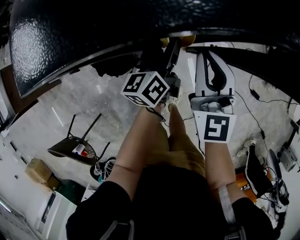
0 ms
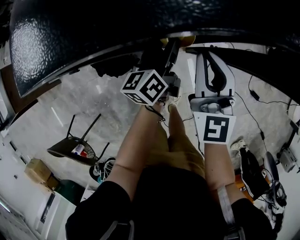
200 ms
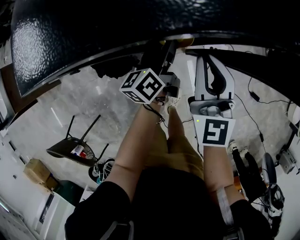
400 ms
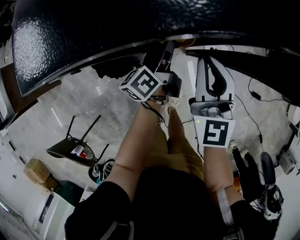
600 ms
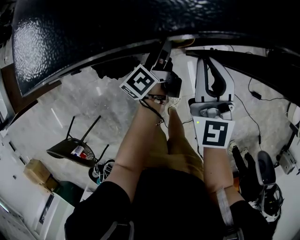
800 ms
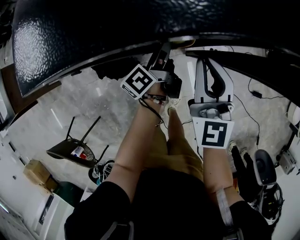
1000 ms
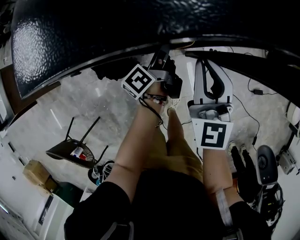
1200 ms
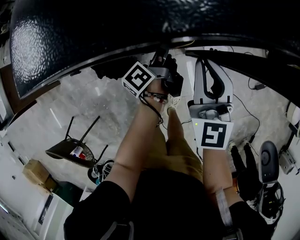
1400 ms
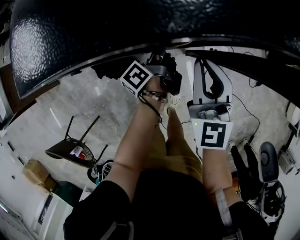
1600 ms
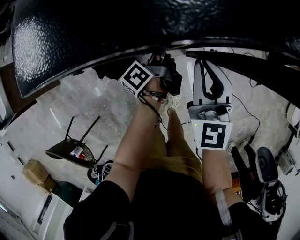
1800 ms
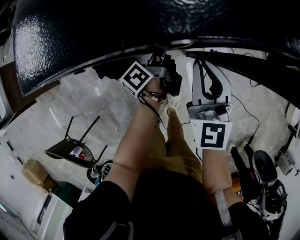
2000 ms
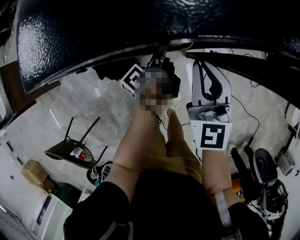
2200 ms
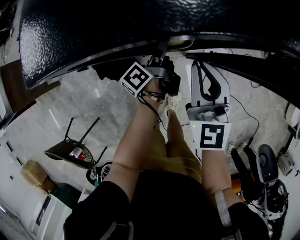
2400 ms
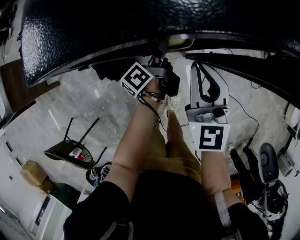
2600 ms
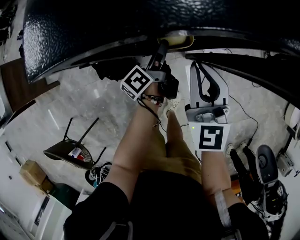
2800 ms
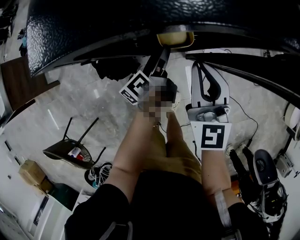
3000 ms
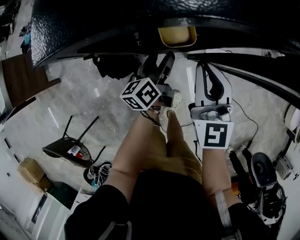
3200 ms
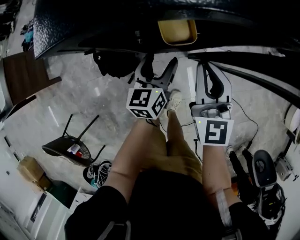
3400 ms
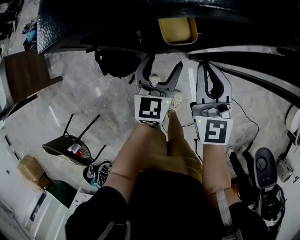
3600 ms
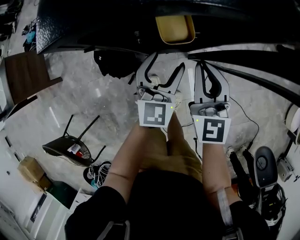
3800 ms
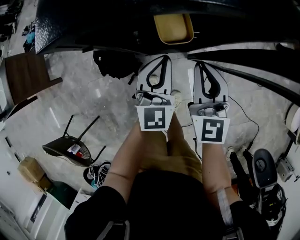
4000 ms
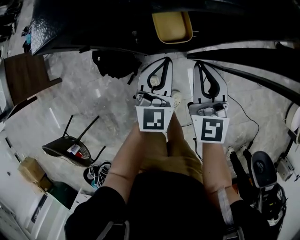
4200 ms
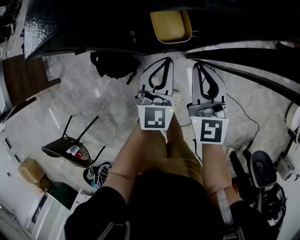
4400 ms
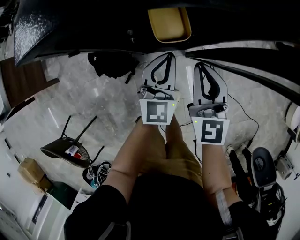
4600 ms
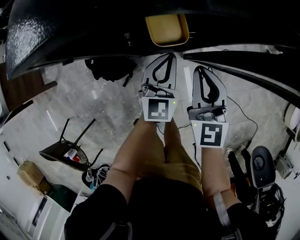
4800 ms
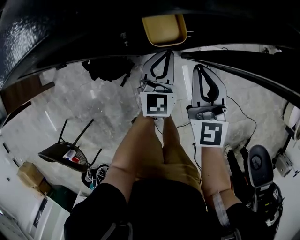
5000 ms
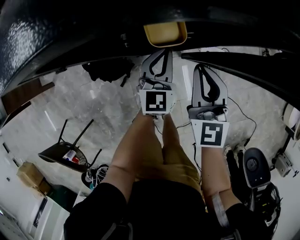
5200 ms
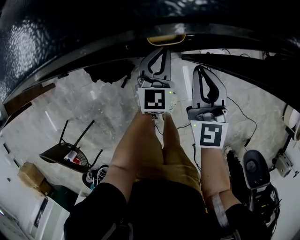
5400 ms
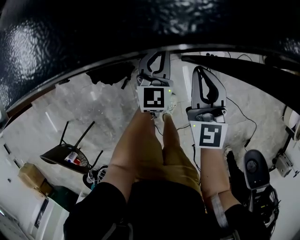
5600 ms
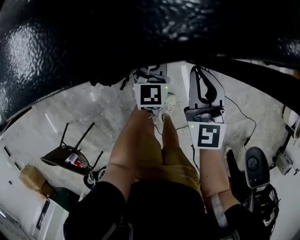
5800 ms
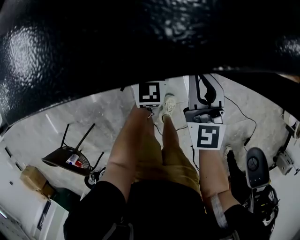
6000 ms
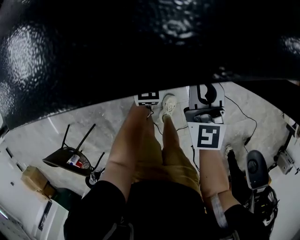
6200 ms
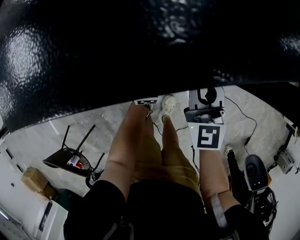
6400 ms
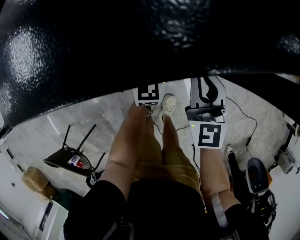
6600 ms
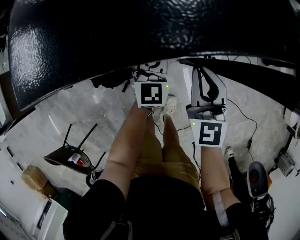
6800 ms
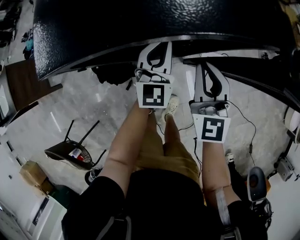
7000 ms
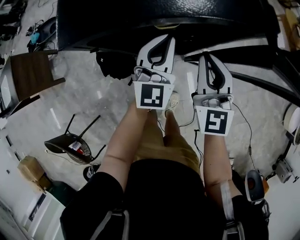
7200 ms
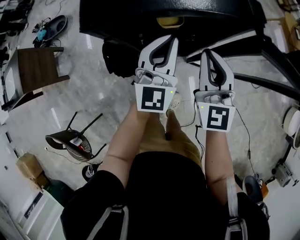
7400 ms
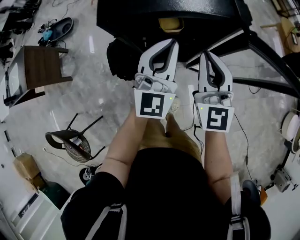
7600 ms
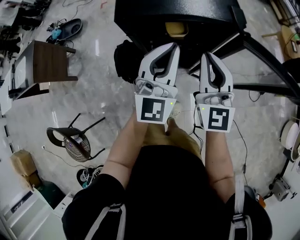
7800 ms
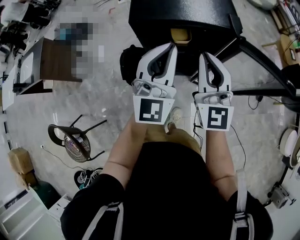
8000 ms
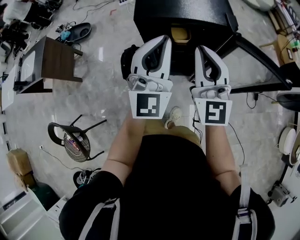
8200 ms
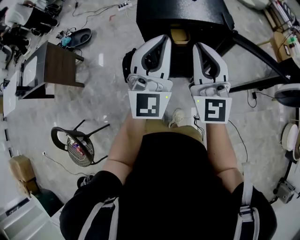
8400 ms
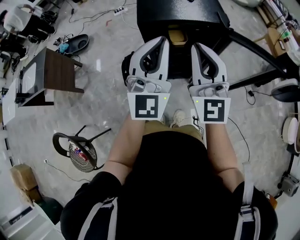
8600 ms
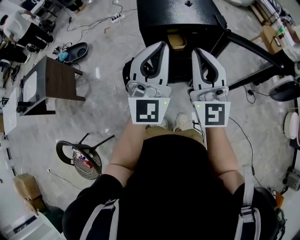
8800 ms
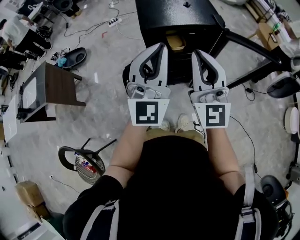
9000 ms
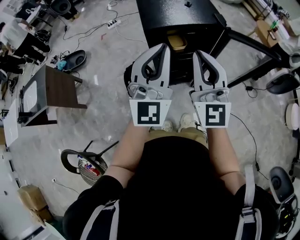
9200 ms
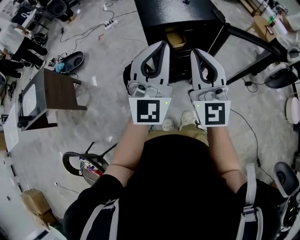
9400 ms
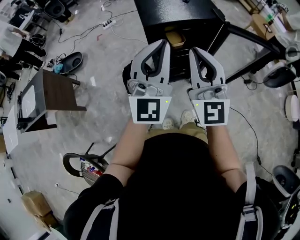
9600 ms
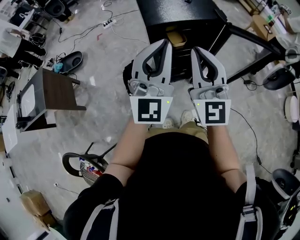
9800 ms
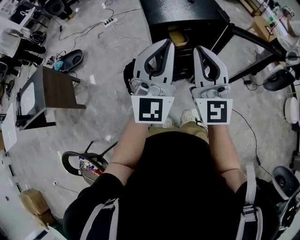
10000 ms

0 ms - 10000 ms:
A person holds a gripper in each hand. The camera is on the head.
0 ms - 1400 ms: The left gripper heads downward, covering approximately 5 cm, and twists roughly 40 degrees counterclockwise, seen from behind.
1400 ms - 2800 ms: The grippers make only small movements.
2800 ms - 4200 ms: The left gripper goes about 15 cm upward and backward, twists some 90 degrees clockwise, seen from behind, and closes its fingers.
4200 ms - 5800 ms: The right gripper shifts by approximately 5 cm; the left gripper heads forward and downward, covering some 15 cm.
5800 ms - 7200 ms: The right gripper shifts approximately 10 cm upward; the left gripper is displaced upward by about 20 cm.
7200 ms - 8600 ms: Both grippers move upward and backward, about 40 cm. The right gripper changes its angle by some 20 degrees. The left gripper changes its angle by approximately 20 degrees.
8600 ms - 10000 ms: The two grippers go approximately 5 cm to the left.

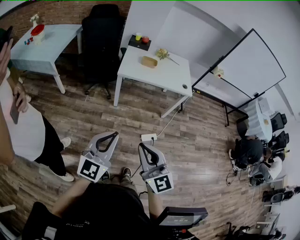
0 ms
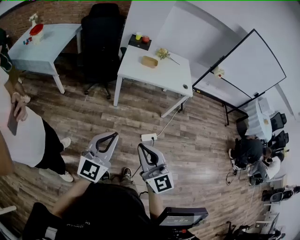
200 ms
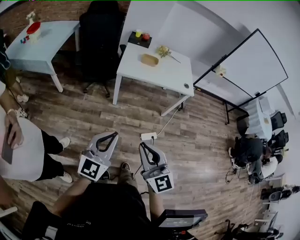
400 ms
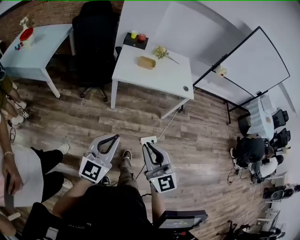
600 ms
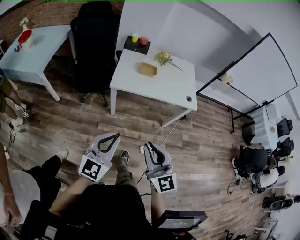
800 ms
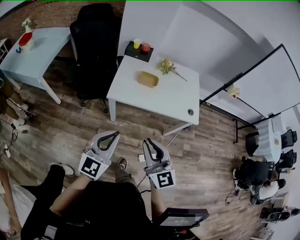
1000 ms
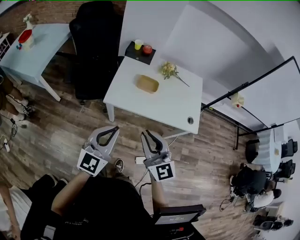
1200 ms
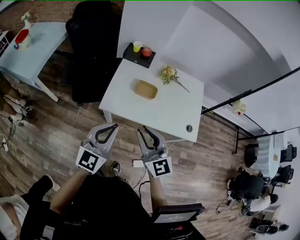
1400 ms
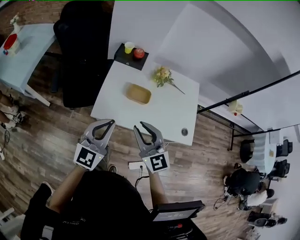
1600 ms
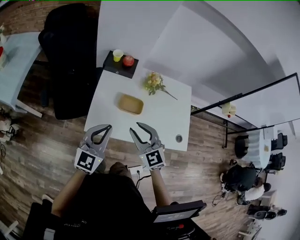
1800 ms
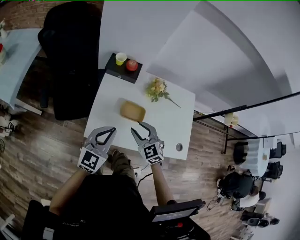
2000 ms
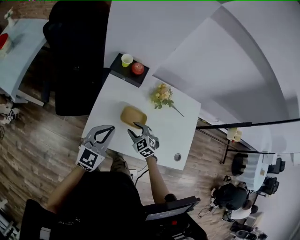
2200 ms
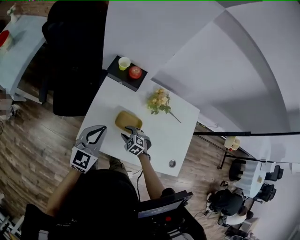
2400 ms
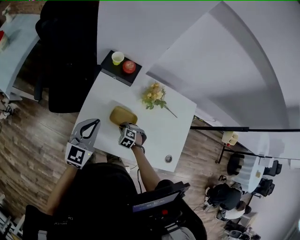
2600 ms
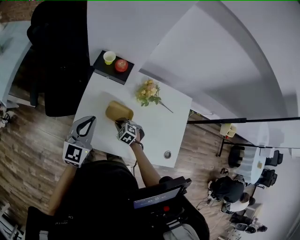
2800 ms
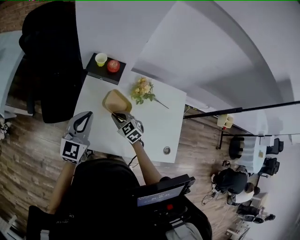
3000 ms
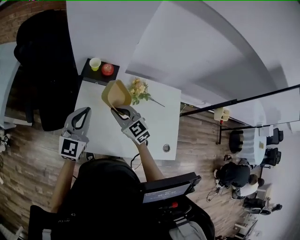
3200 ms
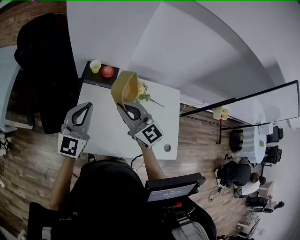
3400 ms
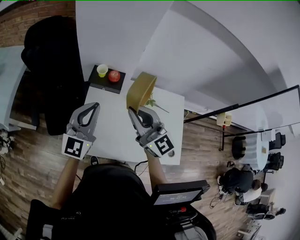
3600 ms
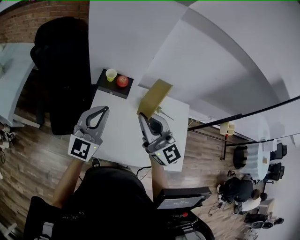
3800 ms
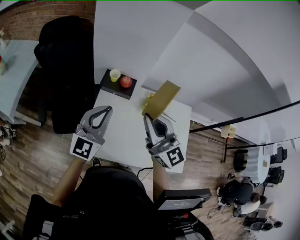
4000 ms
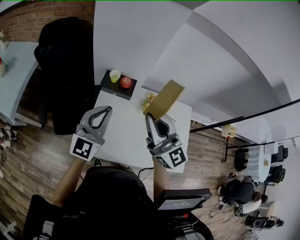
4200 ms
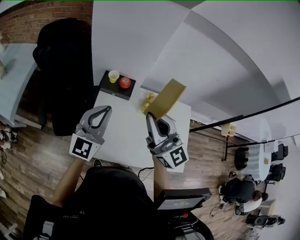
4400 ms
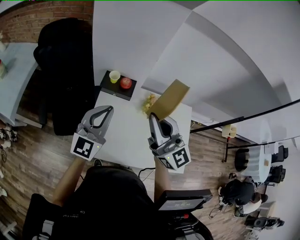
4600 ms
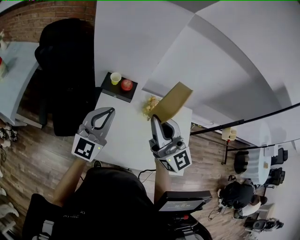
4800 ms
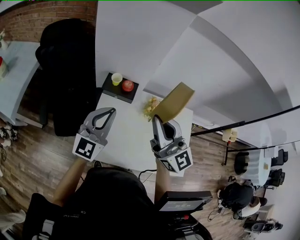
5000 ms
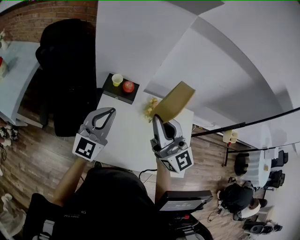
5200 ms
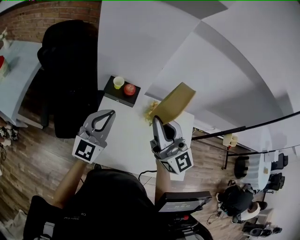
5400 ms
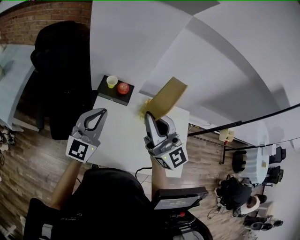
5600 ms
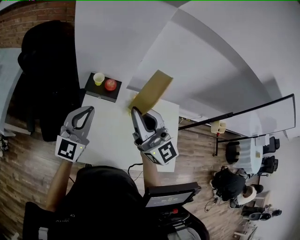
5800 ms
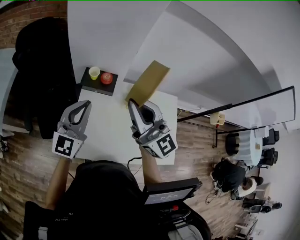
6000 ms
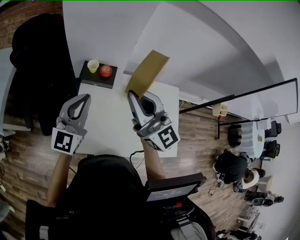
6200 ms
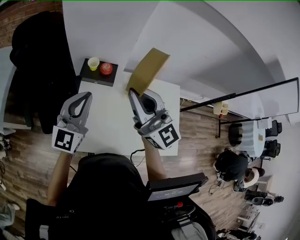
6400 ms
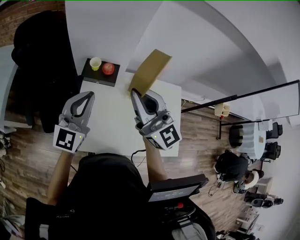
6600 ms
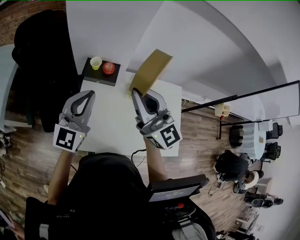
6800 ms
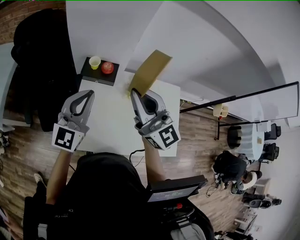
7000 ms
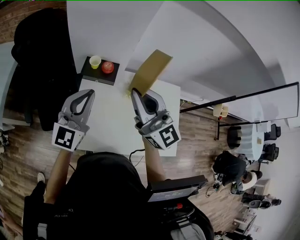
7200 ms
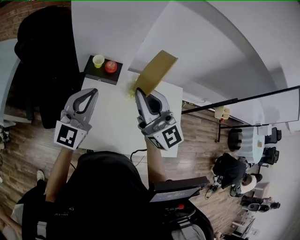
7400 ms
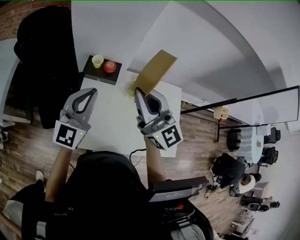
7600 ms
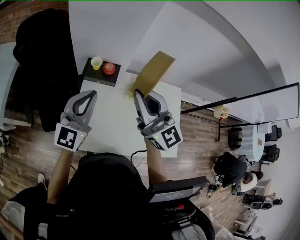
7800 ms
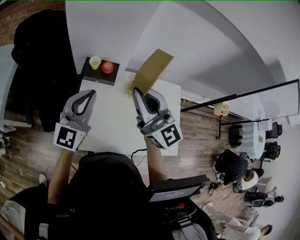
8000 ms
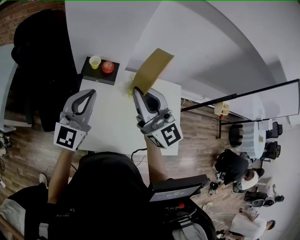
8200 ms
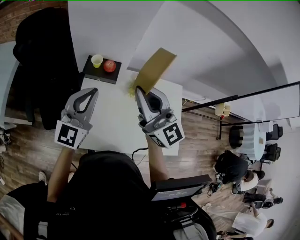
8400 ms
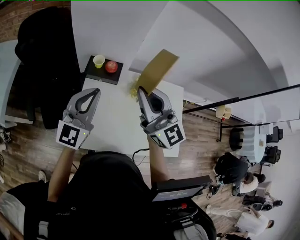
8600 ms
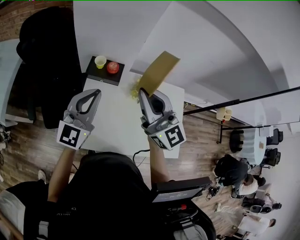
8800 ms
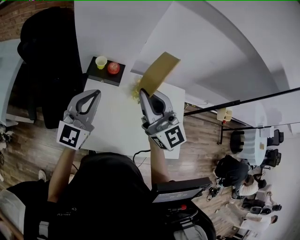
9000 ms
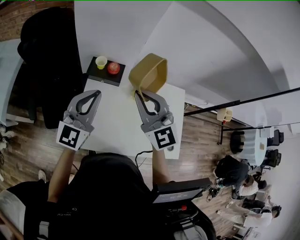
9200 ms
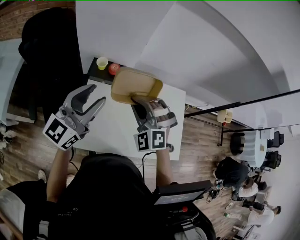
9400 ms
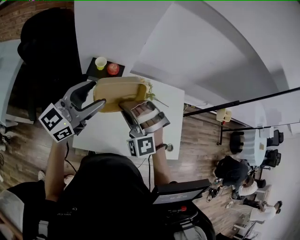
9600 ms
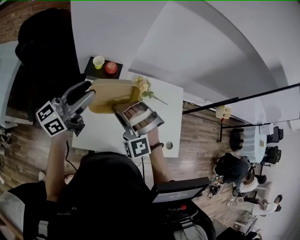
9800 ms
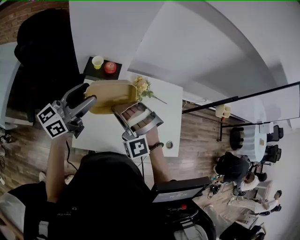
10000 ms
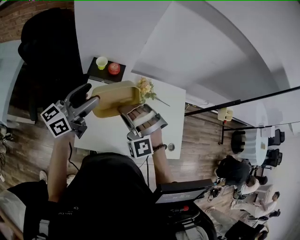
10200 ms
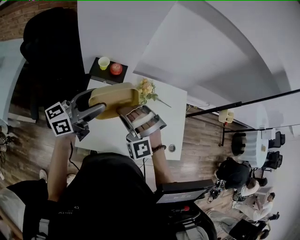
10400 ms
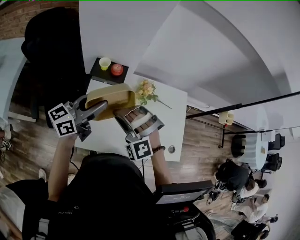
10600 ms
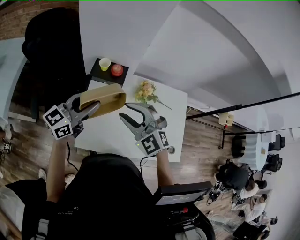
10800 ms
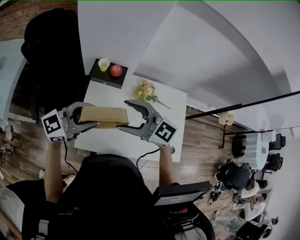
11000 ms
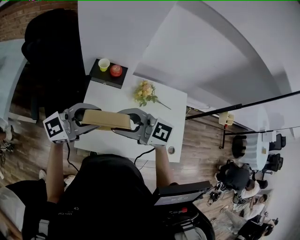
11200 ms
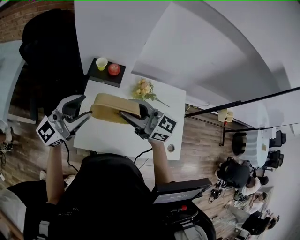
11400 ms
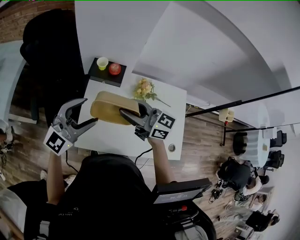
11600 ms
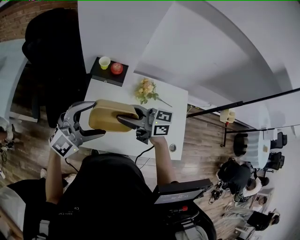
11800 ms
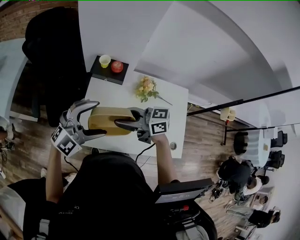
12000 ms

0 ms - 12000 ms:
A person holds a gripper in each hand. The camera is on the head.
0 ms - 1600 ms: Both grippers are carried forward, some 60 cm. The right gripper opens its fingers.
1600 ms - 3000 ms: The right gripper travels forward and downward by approximately 35 cm, turns by roughly 30 degrees, and opens, then closes once more, while the left gripper moves forward, approximately 25 cm.
3000 ms - 4400 ms: The right gripper heads upward, covering about 35 cm, and tilts its fingers roughly 50 degrees upward; the left gripper heads upward, covering about 10 cm.
4400 ms - 7600 ms: The grippers move only a little.
7600 ms - 9000 ms: Both grippers stay about where they are.
9000 ms - 10400 ms: The left gripper swivels some 50 degrees, and opens up; the right gripper goes some 15 cm downward, and twists roughly 70 degrees counterclockwise, seen from behind.
10400 ms - 12000 ms: The left gripper shifts by roughly 10 cm, rolls clockwise, seen from behind, by some 70 degrees, and closes, then reopens, while the right gripper twists about 100 degrees clockwise, seen from behind, and opens up.

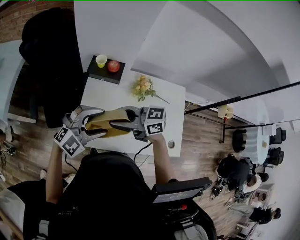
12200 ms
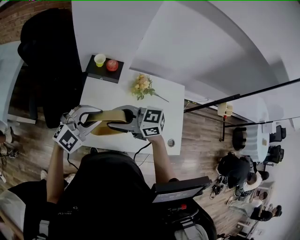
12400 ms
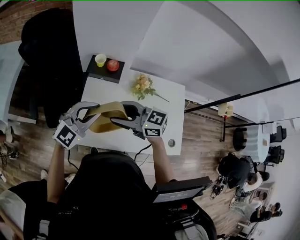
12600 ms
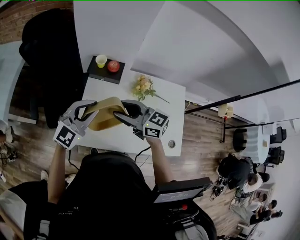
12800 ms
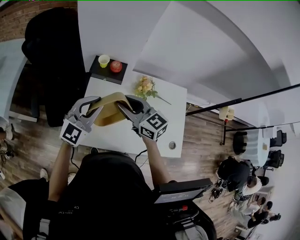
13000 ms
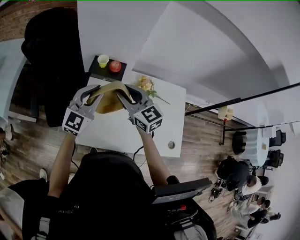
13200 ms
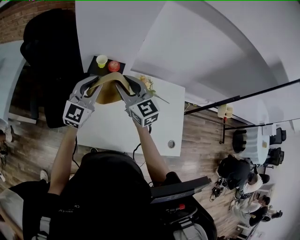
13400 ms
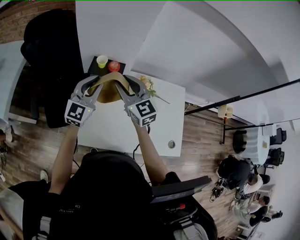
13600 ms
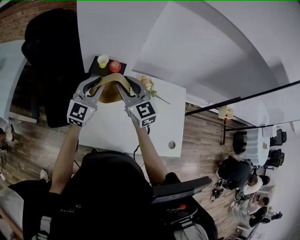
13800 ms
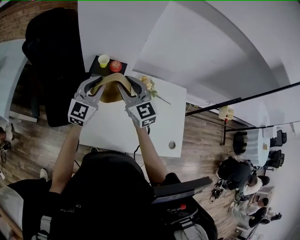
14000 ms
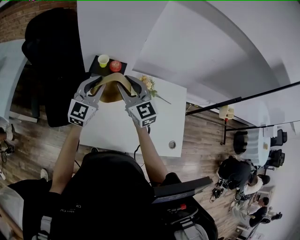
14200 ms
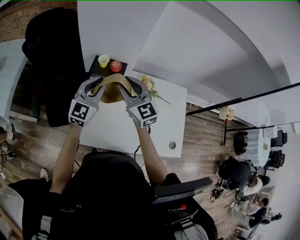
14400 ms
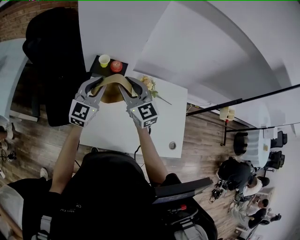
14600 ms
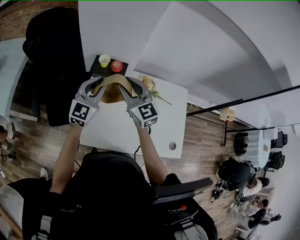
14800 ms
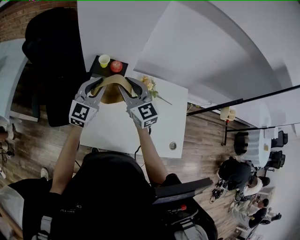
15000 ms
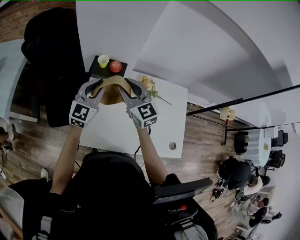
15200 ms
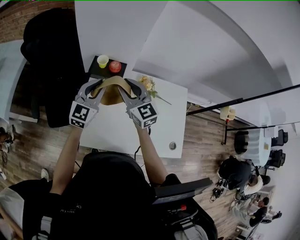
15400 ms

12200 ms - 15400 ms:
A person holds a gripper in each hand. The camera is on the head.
12200 ms - 13800 ms: The left gripper shifts by roughly 15 cm, swivels some 50 degrees, and closes its fingers. Meanwhile the right gripper changes place by some 15 cm, and rotates about 60 degrees.
13800 ms - 15400 ms: The grippers stay close to where they were, moving slightly.
